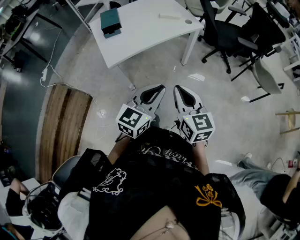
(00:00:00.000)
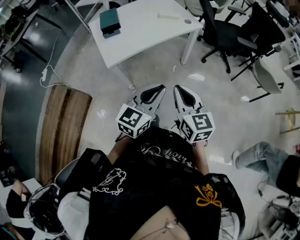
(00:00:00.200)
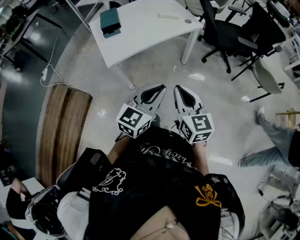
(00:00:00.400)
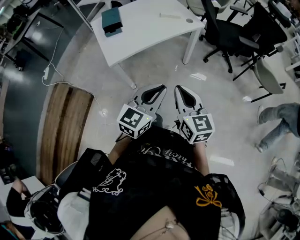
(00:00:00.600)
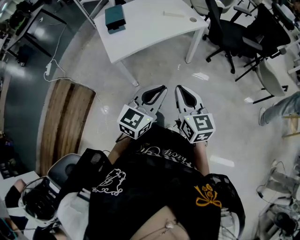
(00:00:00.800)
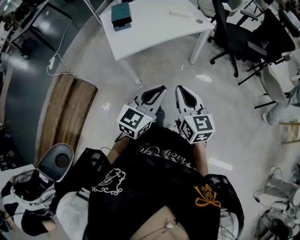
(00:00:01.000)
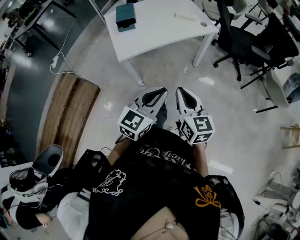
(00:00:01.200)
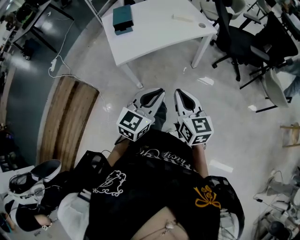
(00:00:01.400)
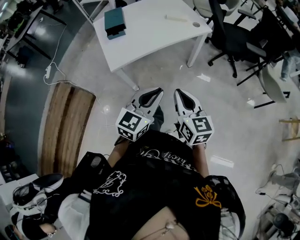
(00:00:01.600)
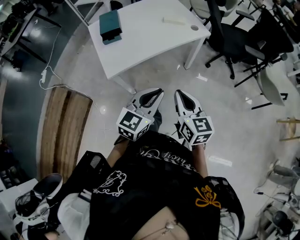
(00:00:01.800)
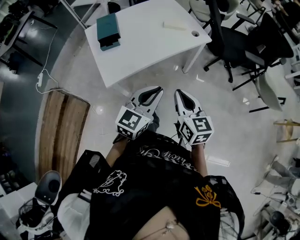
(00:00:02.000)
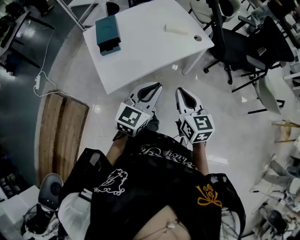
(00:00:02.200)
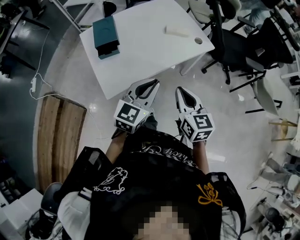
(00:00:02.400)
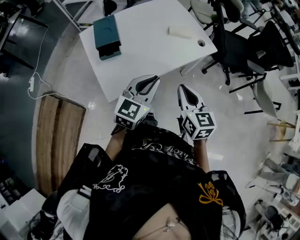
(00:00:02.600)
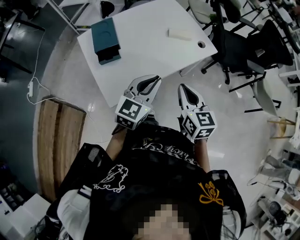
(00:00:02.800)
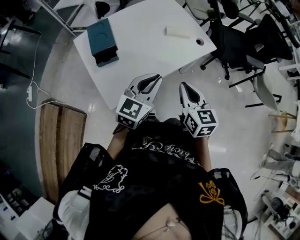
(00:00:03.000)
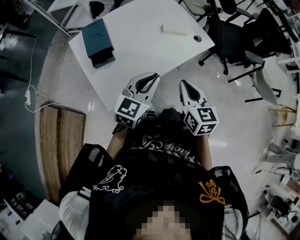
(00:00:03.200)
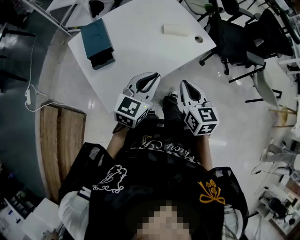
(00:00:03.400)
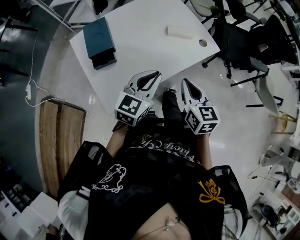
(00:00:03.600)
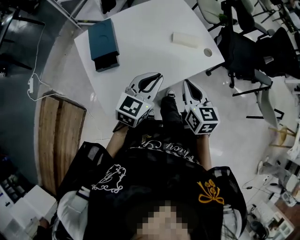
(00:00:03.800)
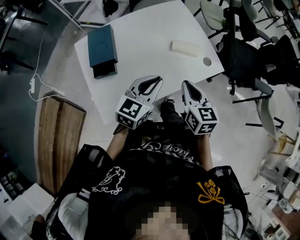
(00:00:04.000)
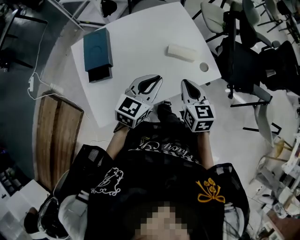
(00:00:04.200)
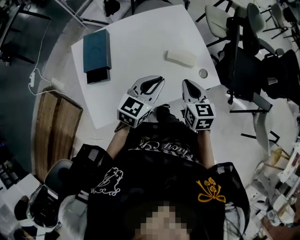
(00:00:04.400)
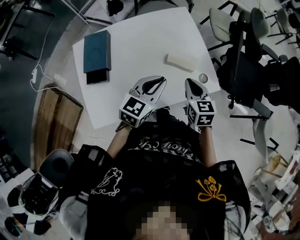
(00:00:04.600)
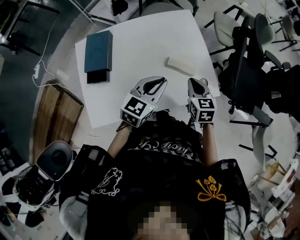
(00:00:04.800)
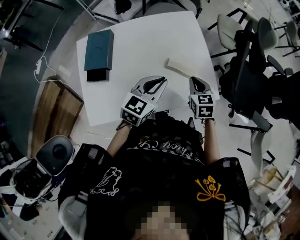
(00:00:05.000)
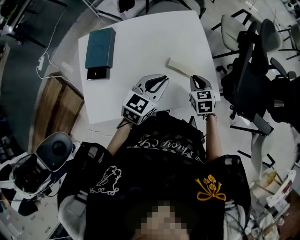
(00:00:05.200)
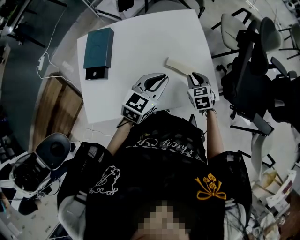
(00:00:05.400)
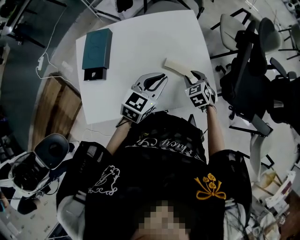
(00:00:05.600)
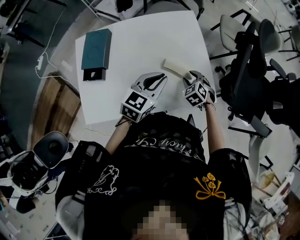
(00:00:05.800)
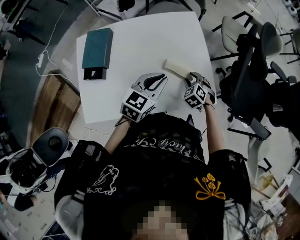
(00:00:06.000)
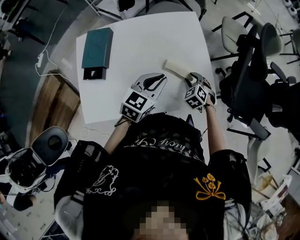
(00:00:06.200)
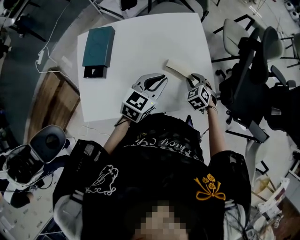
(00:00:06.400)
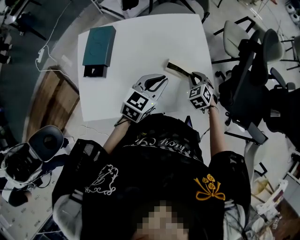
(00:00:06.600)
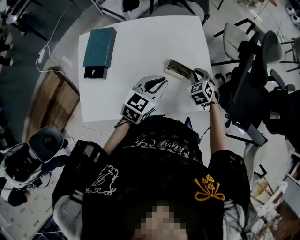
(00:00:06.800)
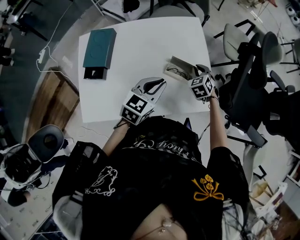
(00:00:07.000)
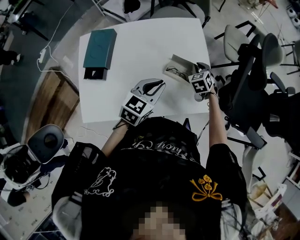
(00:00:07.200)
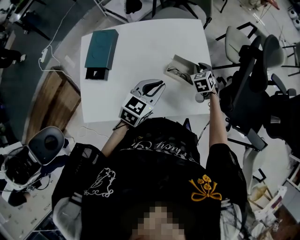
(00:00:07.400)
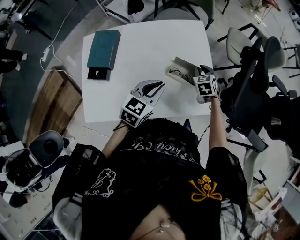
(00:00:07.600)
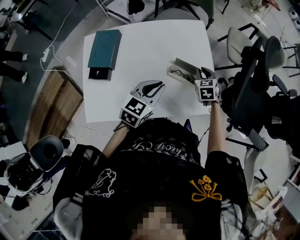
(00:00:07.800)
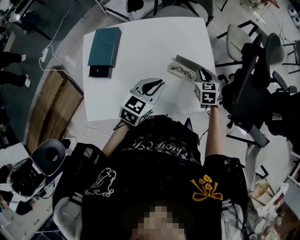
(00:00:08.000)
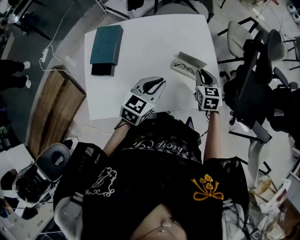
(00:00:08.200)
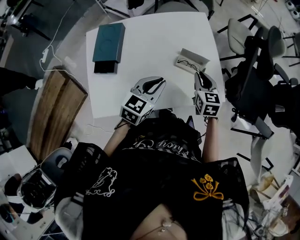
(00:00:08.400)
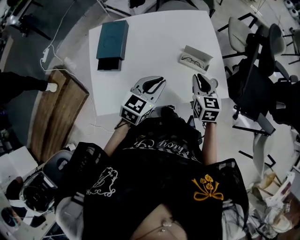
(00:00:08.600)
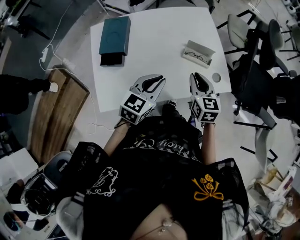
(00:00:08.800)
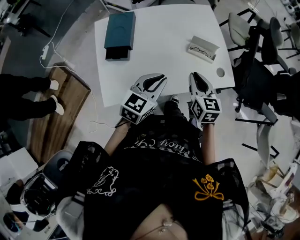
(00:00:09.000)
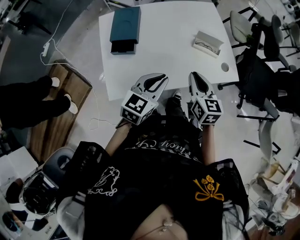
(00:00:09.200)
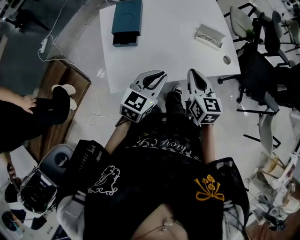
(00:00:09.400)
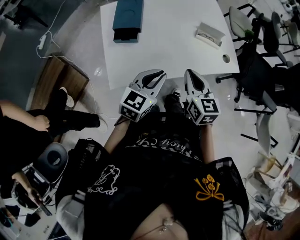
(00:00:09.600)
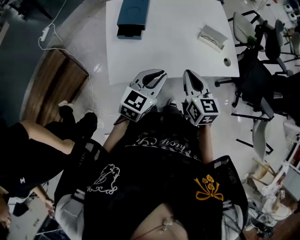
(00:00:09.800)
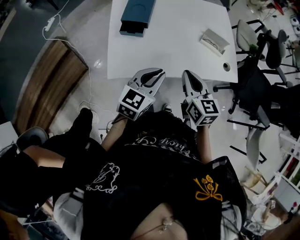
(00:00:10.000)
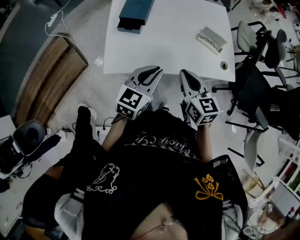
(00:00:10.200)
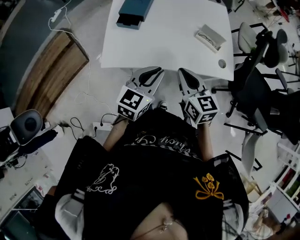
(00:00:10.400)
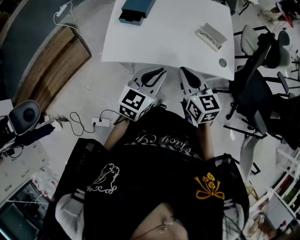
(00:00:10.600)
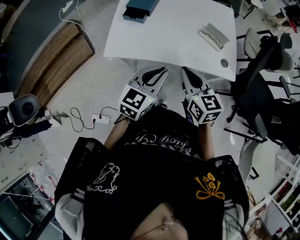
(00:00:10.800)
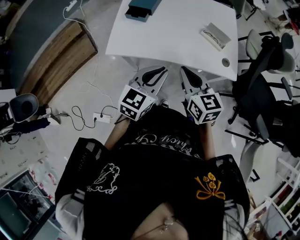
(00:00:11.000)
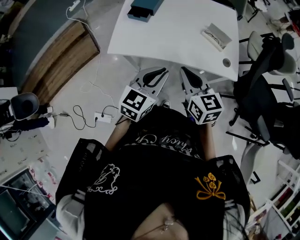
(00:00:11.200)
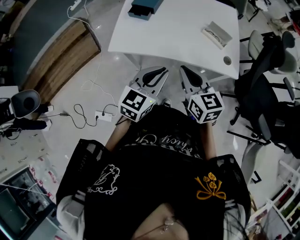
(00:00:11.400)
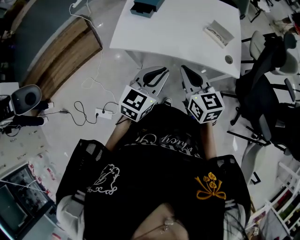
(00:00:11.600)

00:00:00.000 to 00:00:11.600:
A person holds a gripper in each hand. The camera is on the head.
00:00:00.000 to 00:00:01.400: The grippers make only small movements.
00:00:01.400 to 00:00:02.800: The left gripper travels forward and to the left by roughly 35 cm, while the right gripper heads forward, covering approximately 30 cm.
00:00:02.800 to 00:00:04.400: The two grippers go some 25 cm forward.
00:00:04.400 to 00:00:05.800: The right gripper goes roughly 20 cm downward and forward, rolls counterclockwise, seen from behind, by about 40 degrees, and opens up, while the left gripper is displaced forward and to the right by approximately 10 cm.
00:00:05.800 to 00:00:07.200: The right gripper is displaced forward by some 10 cm, and closes up.
00:00:07.200 to 00:00:08.800: The right gripper heads backward and upward, covering roughly 25 cm, and rotates roughly 40 degrees. Meanwhile the left gripper shifts about 15 cm backward and to the left.
00:00:08.800 to 00:00:10.200: The left gripper moves backward, roughly 15 cm; the right gripper travels backward and to the left by some 20 cm, and swivels approximately 20 degrees.
00:00:10.200 to 00:00:11.600: The left gripper shifts some 15 cm backward and to the right, while the right gripper shifts about 10 cm backward.

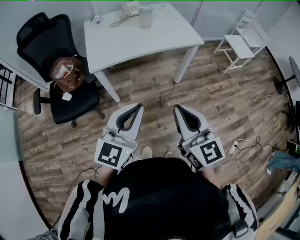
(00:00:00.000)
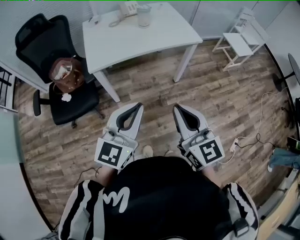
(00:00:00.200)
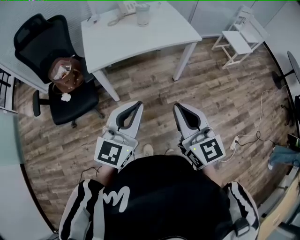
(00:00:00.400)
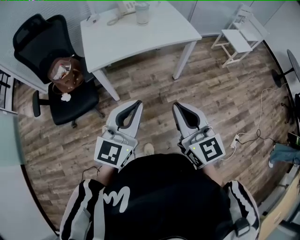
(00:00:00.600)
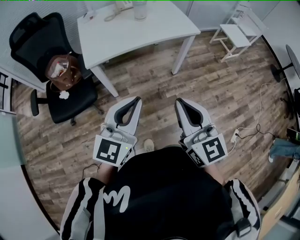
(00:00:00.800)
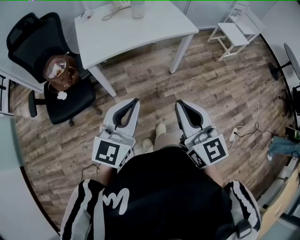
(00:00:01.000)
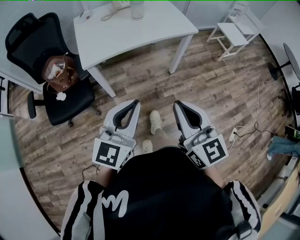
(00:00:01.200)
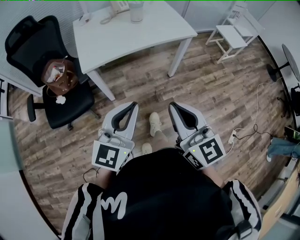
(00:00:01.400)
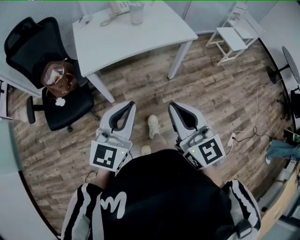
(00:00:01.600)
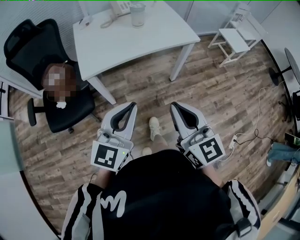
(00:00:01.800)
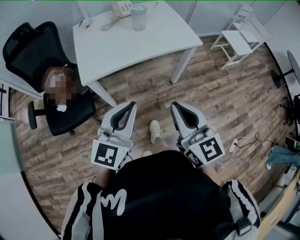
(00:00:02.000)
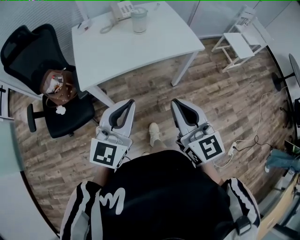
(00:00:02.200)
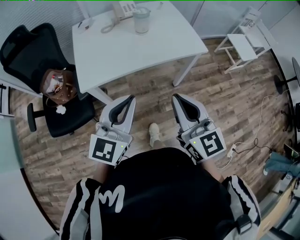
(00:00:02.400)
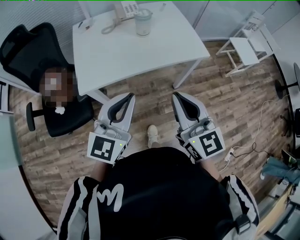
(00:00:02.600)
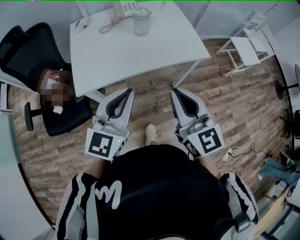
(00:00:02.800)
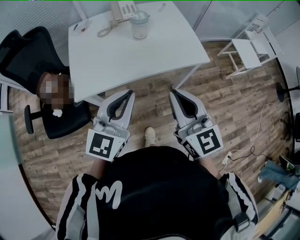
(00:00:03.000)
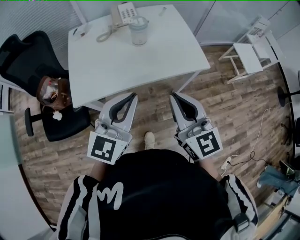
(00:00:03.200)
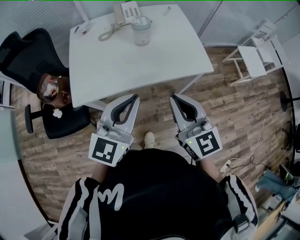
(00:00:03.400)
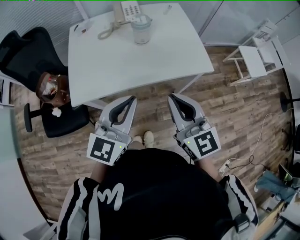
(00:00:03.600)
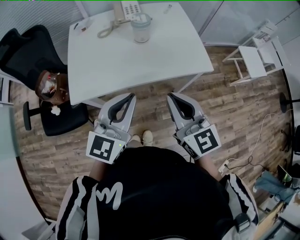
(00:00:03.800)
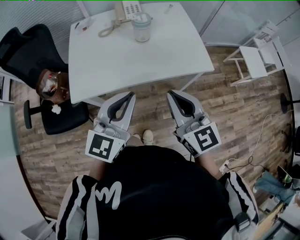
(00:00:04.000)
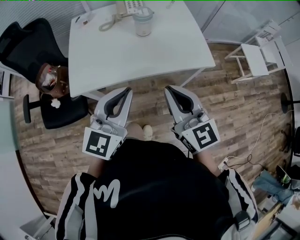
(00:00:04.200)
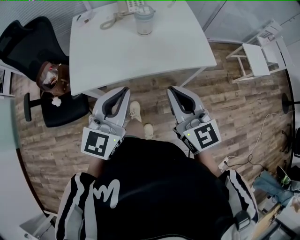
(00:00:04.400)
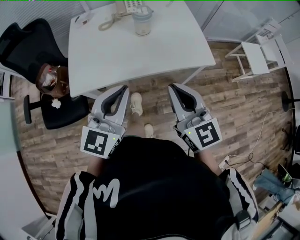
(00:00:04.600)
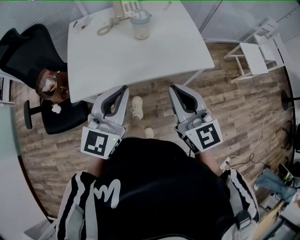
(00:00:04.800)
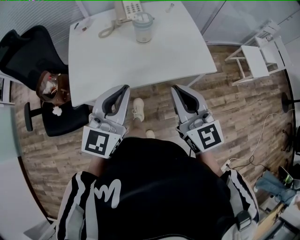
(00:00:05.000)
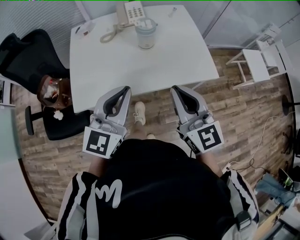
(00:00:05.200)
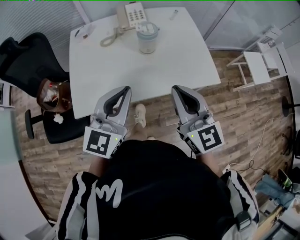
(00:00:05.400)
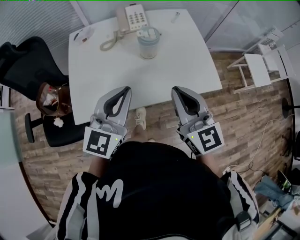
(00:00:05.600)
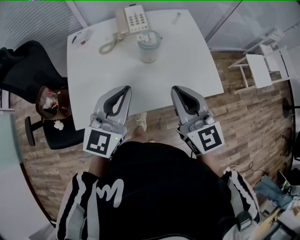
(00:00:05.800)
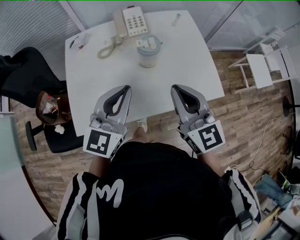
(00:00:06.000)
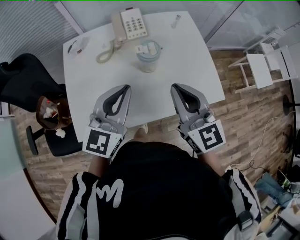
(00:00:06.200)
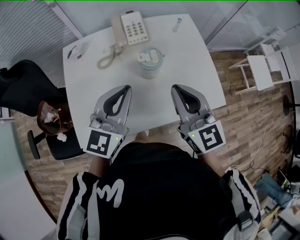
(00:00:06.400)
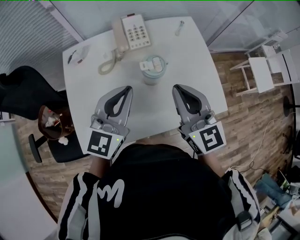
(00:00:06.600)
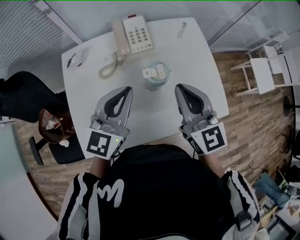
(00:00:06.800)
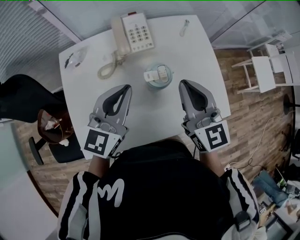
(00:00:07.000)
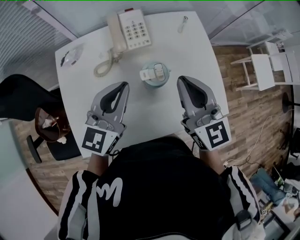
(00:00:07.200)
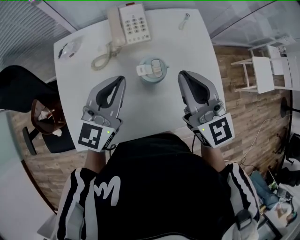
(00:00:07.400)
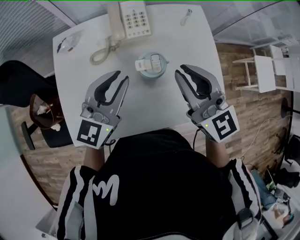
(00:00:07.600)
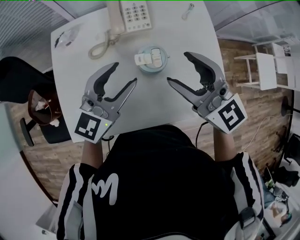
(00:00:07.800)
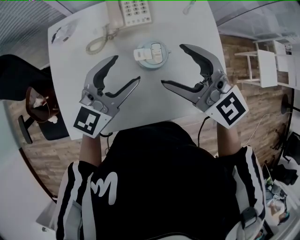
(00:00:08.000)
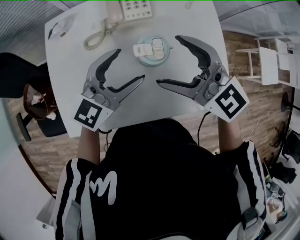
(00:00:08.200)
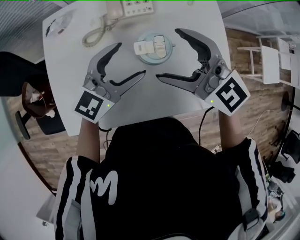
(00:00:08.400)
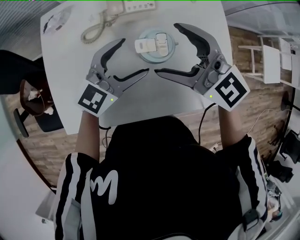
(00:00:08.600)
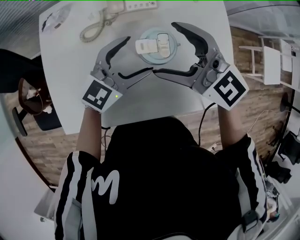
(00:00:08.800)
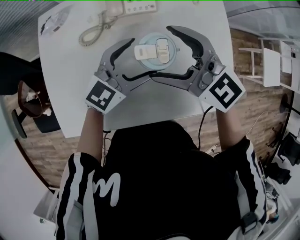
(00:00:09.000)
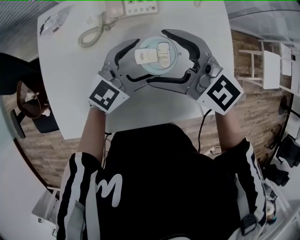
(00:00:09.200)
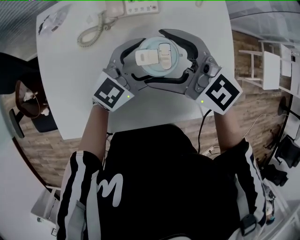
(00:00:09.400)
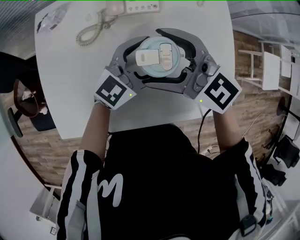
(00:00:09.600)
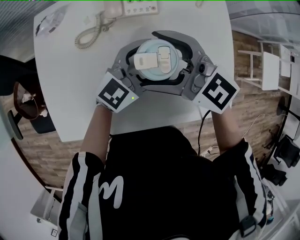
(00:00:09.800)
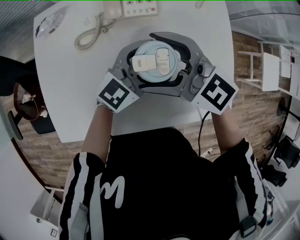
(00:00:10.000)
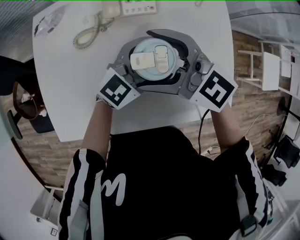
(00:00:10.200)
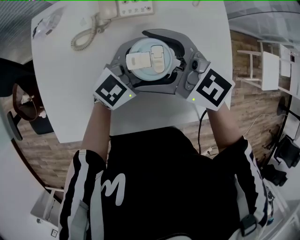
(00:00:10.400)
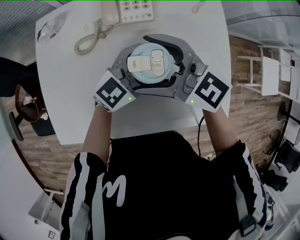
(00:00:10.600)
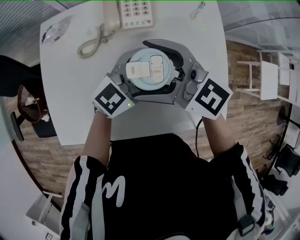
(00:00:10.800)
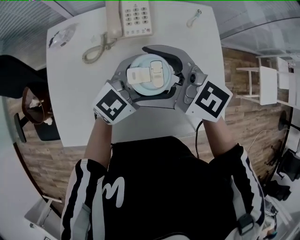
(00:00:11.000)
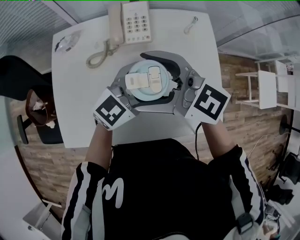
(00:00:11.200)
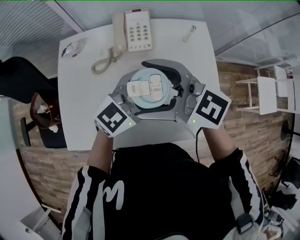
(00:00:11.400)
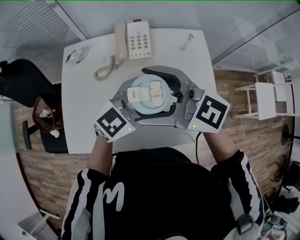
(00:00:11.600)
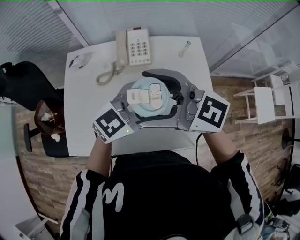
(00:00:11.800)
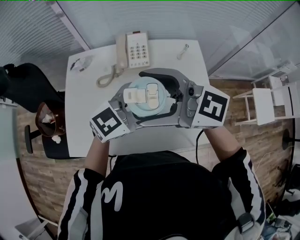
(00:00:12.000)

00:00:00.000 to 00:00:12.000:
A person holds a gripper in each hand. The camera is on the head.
00:00:00.000 to 00:00:01.600: The grippers make only small movements.
00:00:01.600 to 00:00:03.000: Both grippers travel together forward, roughly 25 cm.
00:00:03.000 to 00:00:04.400: The right gripper changes place by approximately 5 cm.
00:00:04.400 to 00:00:06.000: The two grippers go about 20 cm forward.
00:00:06.000 to 00:00:07.600: The two grippers go roughly 15 cm forward.
00:00:07.600 to 00:00:09.000: The left gripper shifts some 15 cm downward and to the right, and opens its fingers, while the right gripper shifts roughly 10 cm downward and to the left, swivels some 30 degrees, and opens its fingers.
00:00:09.000 to 00:00:10.400: The left gripper shifts by about 5 cm.
00:00:10.400 to 00:00:12.000: The grippers both shift upward by about 15 cm.
